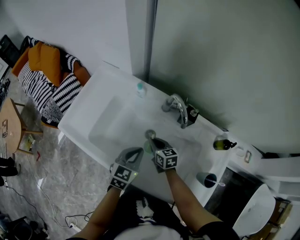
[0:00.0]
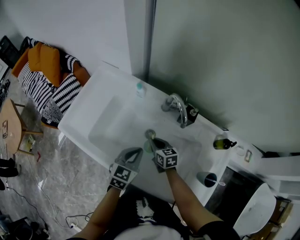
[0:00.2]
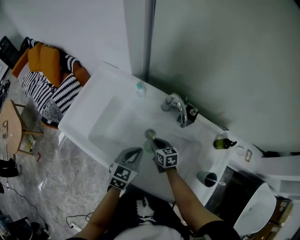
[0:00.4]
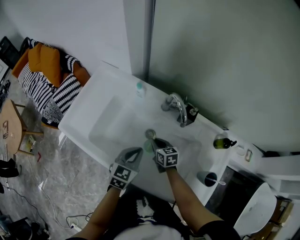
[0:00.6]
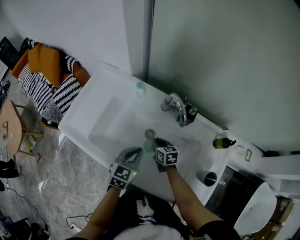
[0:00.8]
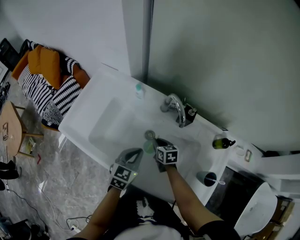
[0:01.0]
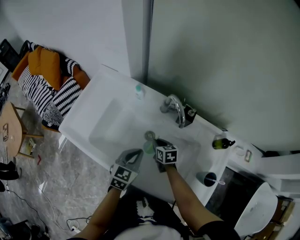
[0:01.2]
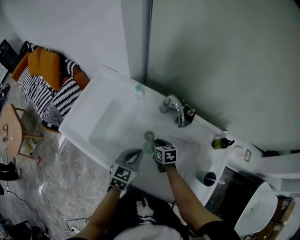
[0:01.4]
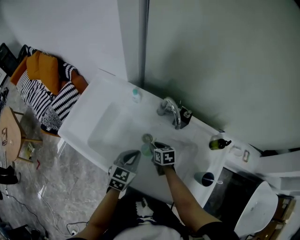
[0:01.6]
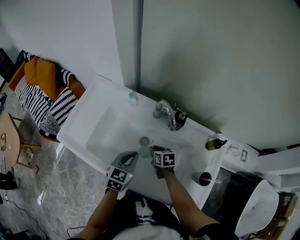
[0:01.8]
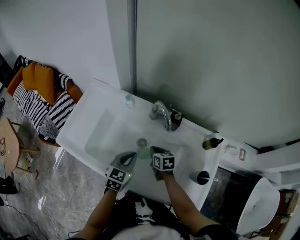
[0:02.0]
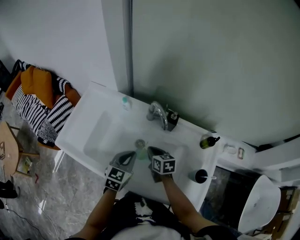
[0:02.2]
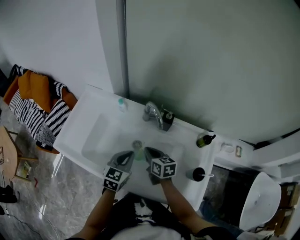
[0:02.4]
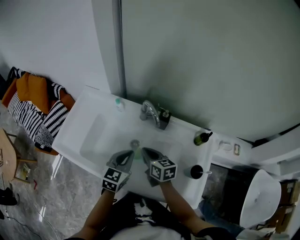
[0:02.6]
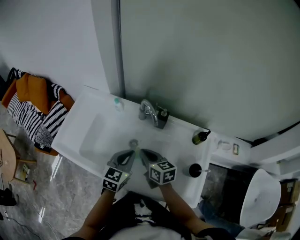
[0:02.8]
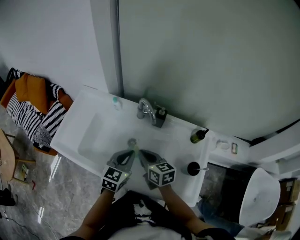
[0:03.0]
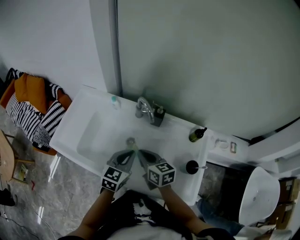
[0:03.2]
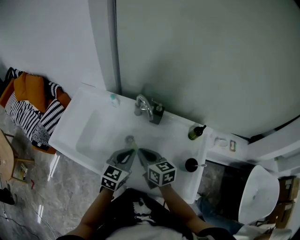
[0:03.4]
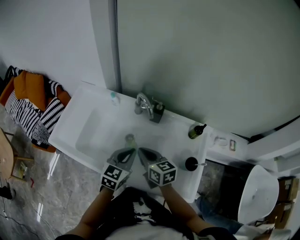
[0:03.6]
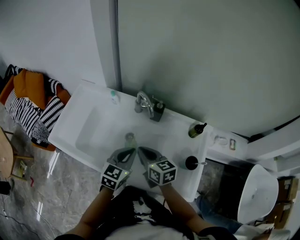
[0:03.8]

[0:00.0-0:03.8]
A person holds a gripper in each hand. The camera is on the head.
0:00.0 to 0:01.2: The grippers move only a little.
0:01.2 to 0:02.6: The left gripper shifts some 5 cm upward, while the right gripper shifts about 15 cm upward.
0:02.6 to 0:03.8: The left gripper moves roughly 5 cm. The right gripper shifts roughly 5 cm backward.

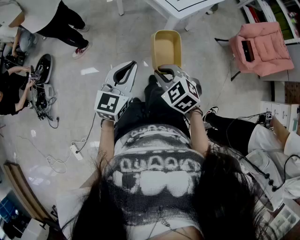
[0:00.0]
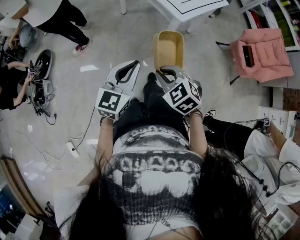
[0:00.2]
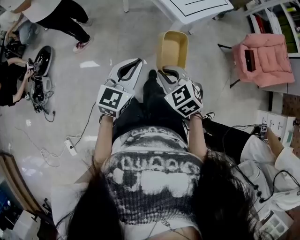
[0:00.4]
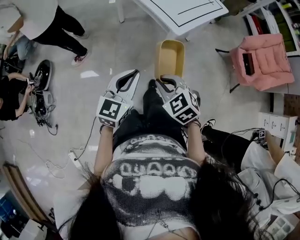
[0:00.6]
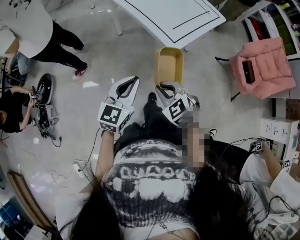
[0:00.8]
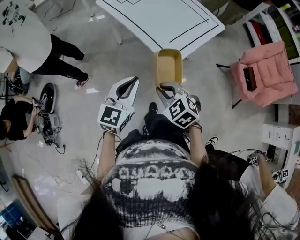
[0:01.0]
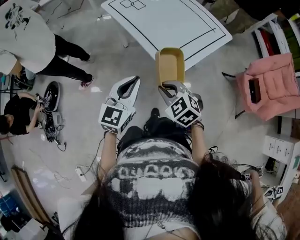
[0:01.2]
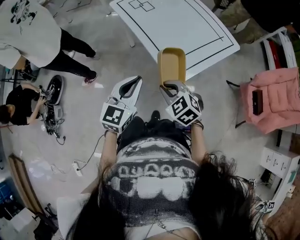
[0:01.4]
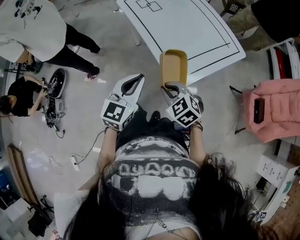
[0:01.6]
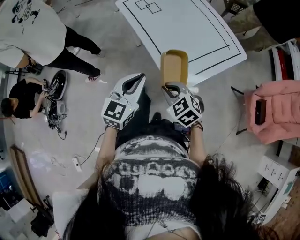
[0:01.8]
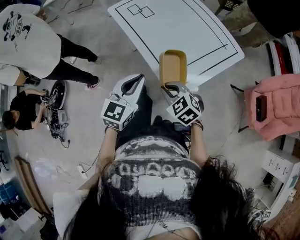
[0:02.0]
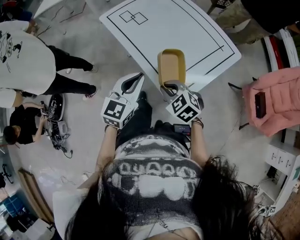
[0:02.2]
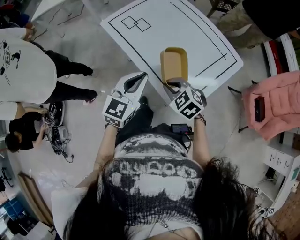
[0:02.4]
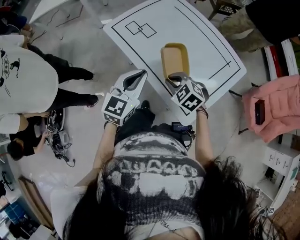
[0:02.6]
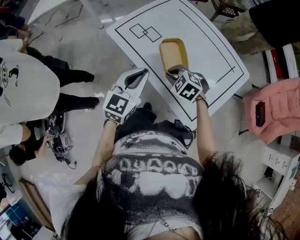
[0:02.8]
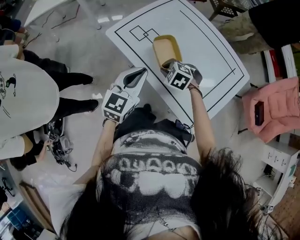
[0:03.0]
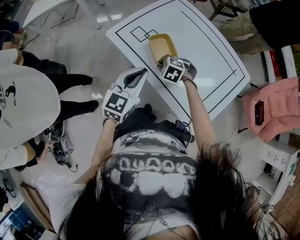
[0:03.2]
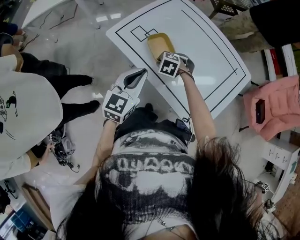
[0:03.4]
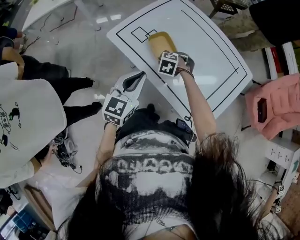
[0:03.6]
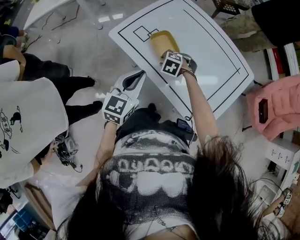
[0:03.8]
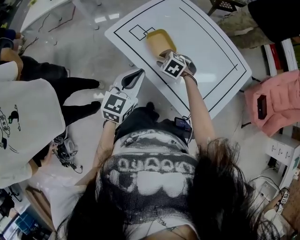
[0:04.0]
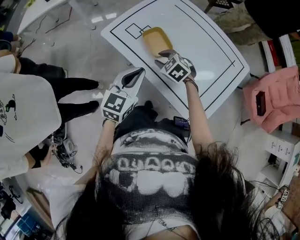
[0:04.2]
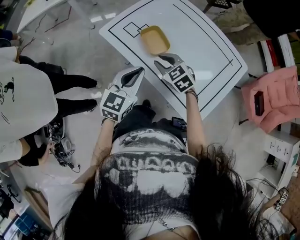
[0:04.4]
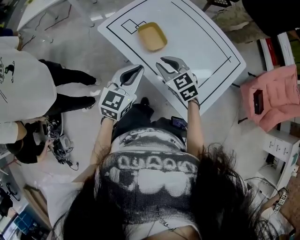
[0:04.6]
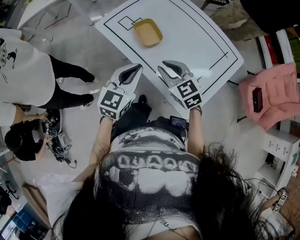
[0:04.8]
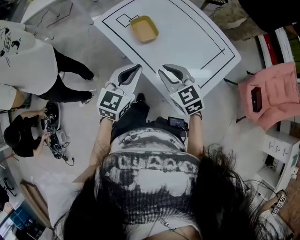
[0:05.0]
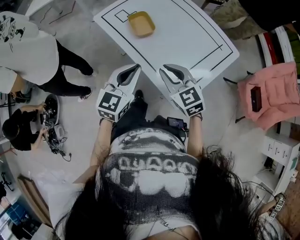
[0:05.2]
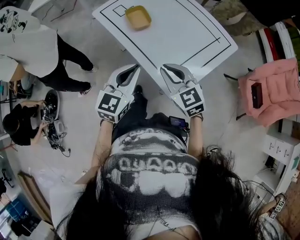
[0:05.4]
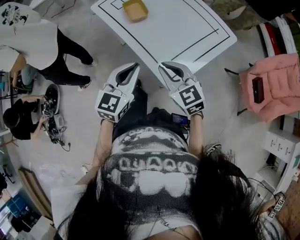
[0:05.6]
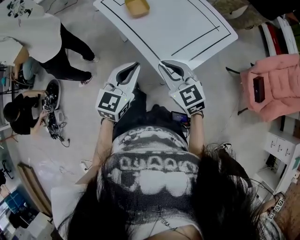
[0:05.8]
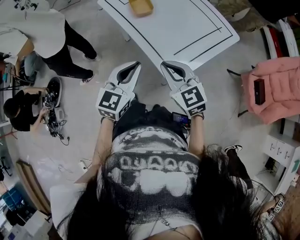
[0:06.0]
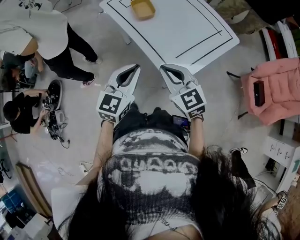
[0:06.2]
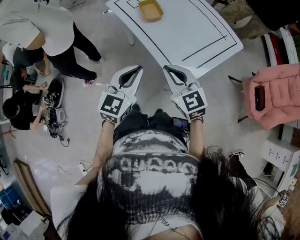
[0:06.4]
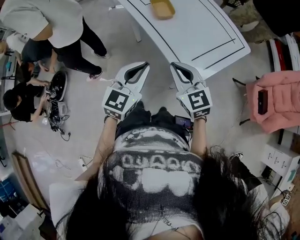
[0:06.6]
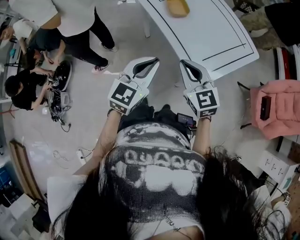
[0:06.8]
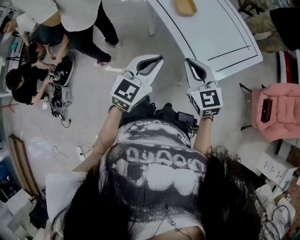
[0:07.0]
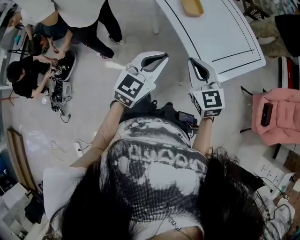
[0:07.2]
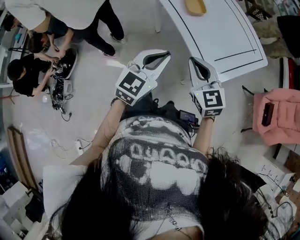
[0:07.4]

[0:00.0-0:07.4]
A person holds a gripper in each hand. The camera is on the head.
0:00.0 to 0:01.4: The two grippers travel together, forward and to the right, roughly 40 cm.
0:01.4 to 0:03.0: The grippers both shift forward by roughly 40 cm.
0:03.0 to 0:04.4: The right gripper changes its angle by some 30 degrees.
0:04.4 to 0:06.0: The two grippers go some 35 cm backward and to the right. The right gripper rotates some 20 degrees, and closes its fingers.
0:06.0 to 0:07.4: Both grippers travel together to the left, approximately 15 cm.

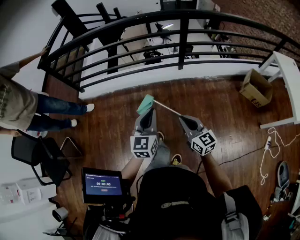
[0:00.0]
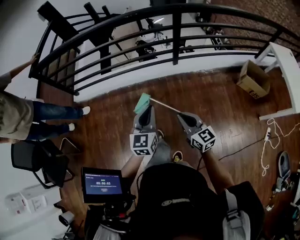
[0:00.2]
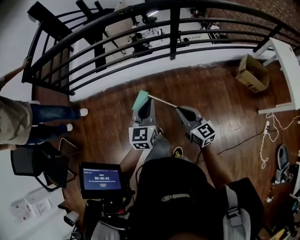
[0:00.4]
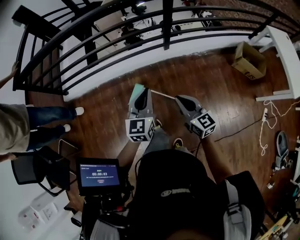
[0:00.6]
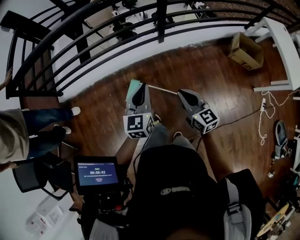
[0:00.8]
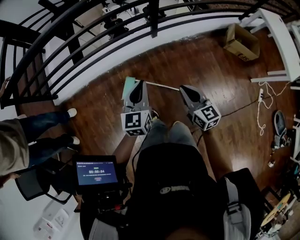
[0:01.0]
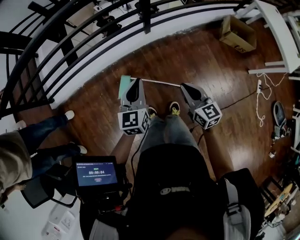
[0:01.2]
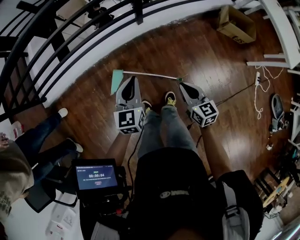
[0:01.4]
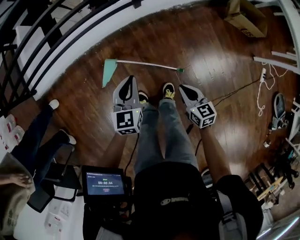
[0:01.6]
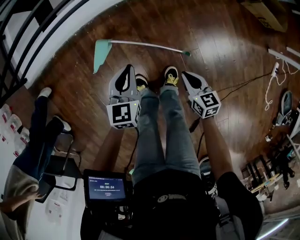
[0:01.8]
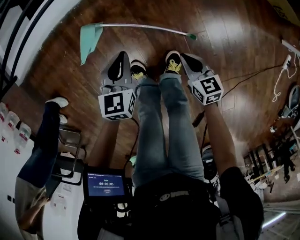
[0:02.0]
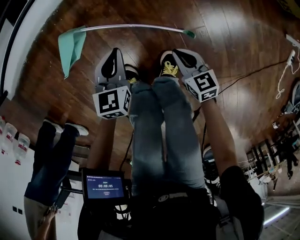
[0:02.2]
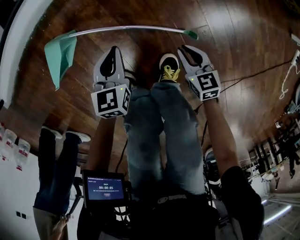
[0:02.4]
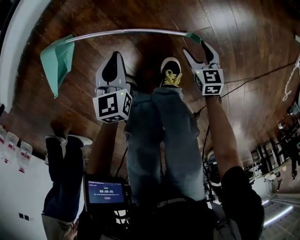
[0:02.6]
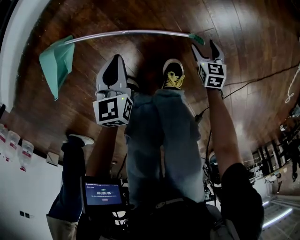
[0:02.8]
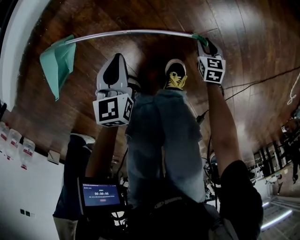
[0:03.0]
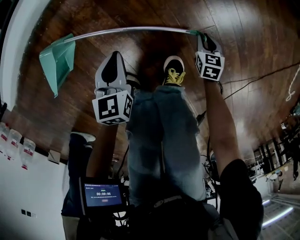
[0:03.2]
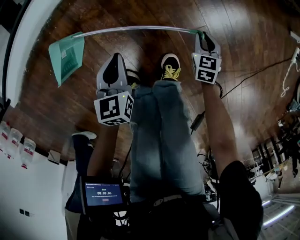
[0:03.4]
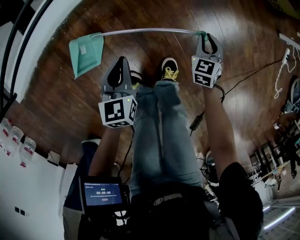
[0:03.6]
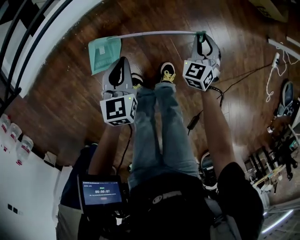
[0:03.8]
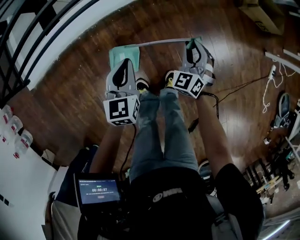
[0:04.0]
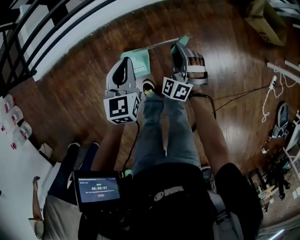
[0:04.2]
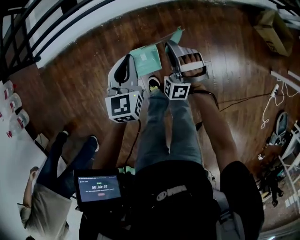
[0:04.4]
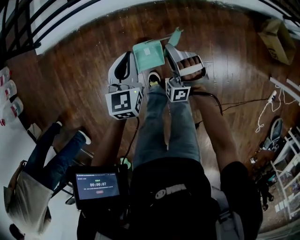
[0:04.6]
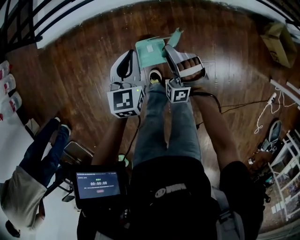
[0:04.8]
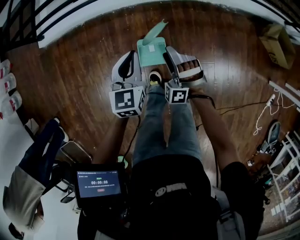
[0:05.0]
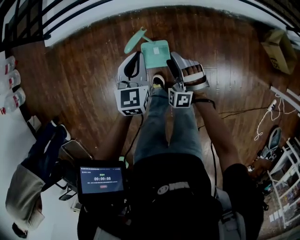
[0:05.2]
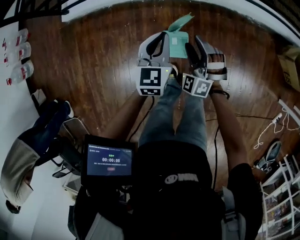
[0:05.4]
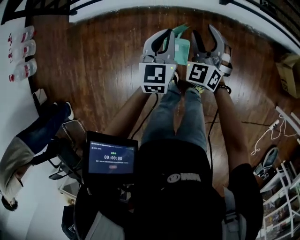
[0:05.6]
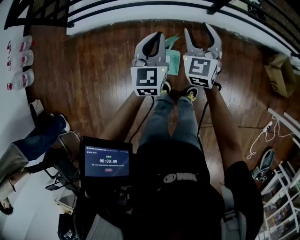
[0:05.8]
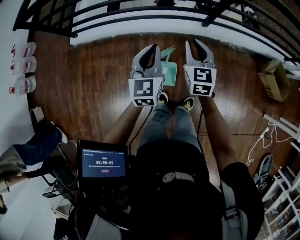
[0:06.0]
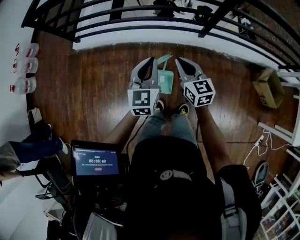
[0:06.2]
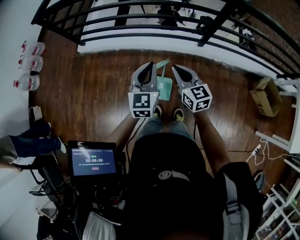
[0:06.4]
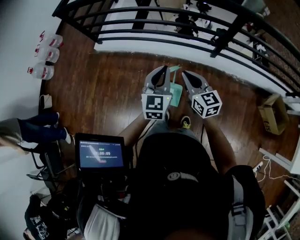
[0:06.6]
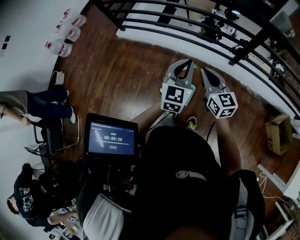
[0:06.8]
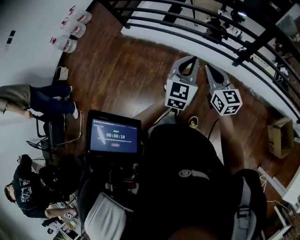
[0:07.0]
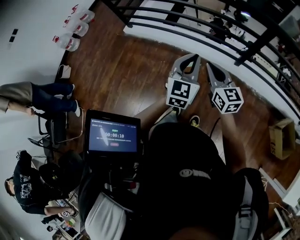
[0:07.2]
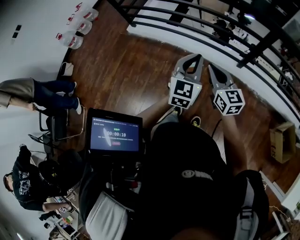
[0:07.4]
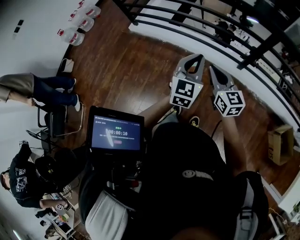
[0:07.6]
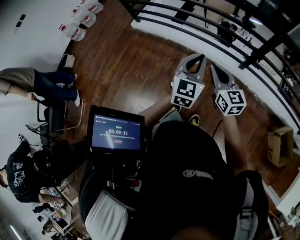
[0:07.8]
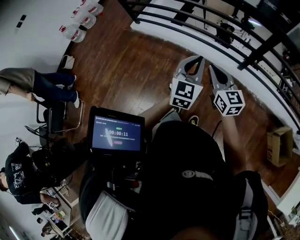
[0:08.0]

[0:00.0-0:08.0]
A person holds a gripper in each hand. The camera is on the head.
0:00.0 to 0:01.6: Both grippers travel together downward and forward, about 30 cm. The right gripper rotates roughly 30 degrees.
0:01.6 to 0:03.2: The two grippers go some 50 cm downward. The right gripper changes its angle by approximately 30 degrees, and opens, then closes once more.
0:03.2 to 0:04.8: Both grippers travel together upward, some 50 cm. The right gripper rolls counterclockwise, seen from behind, by roughly 100 degrees. Meanwhile the left gripper swivels roughly 30 degrees.
0:04.8 to 0:06.4: Both grippers travel together upward, about 25 cm. The right gripper twists roughly 80 degrees clockwise, seen from behind, and closes.
0:06.4 to 0:08.0: The left gripper is displaced to the right and upward by roughly 10 cm; the right gripper is displaced upward by some 5 cm.

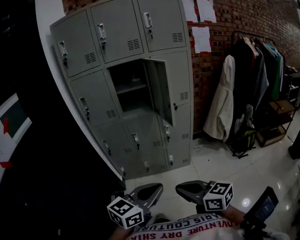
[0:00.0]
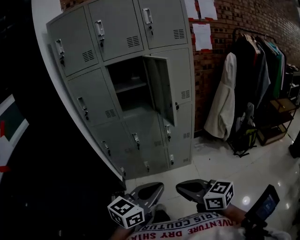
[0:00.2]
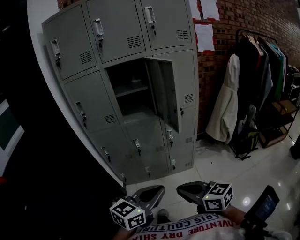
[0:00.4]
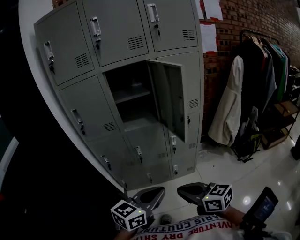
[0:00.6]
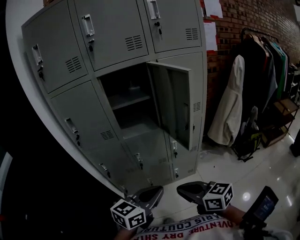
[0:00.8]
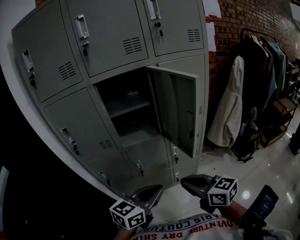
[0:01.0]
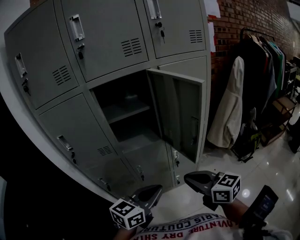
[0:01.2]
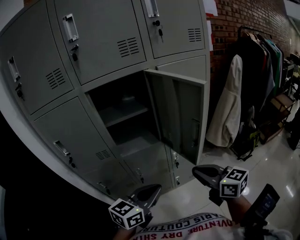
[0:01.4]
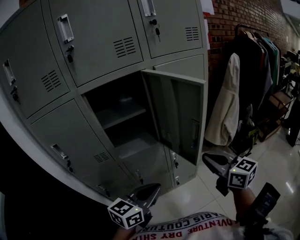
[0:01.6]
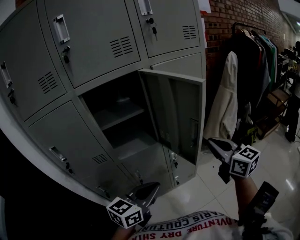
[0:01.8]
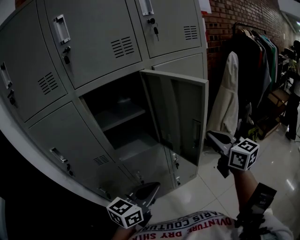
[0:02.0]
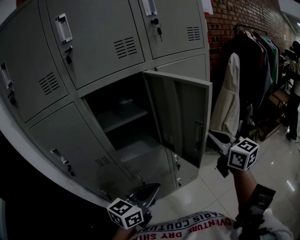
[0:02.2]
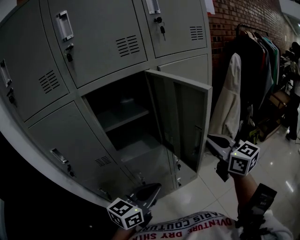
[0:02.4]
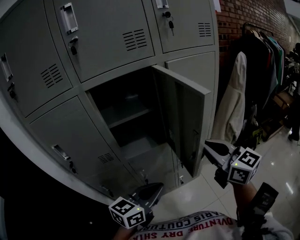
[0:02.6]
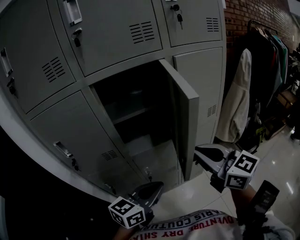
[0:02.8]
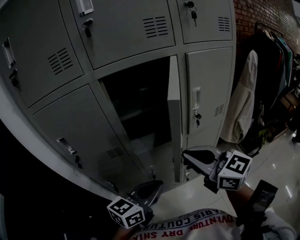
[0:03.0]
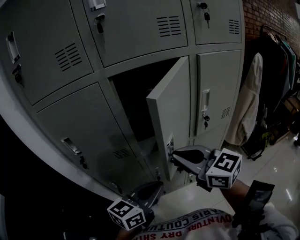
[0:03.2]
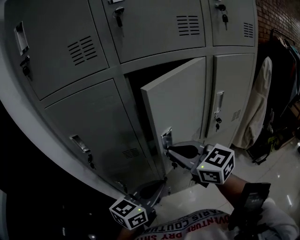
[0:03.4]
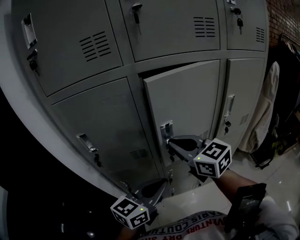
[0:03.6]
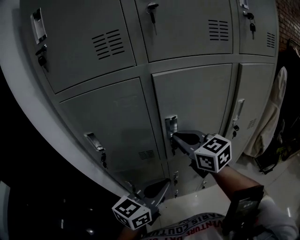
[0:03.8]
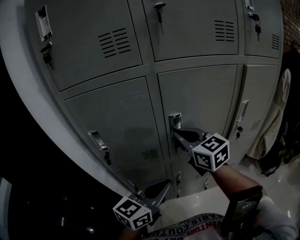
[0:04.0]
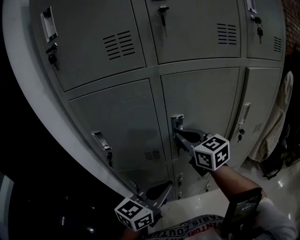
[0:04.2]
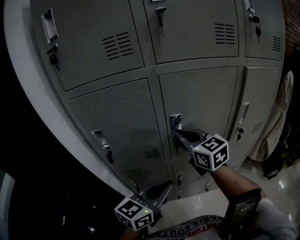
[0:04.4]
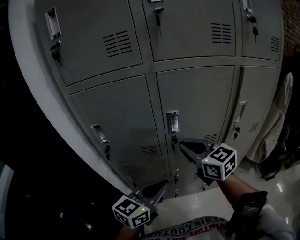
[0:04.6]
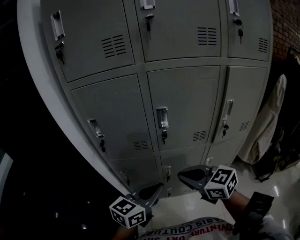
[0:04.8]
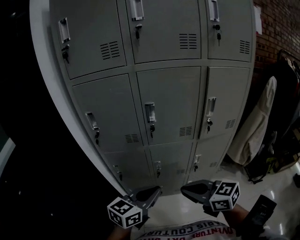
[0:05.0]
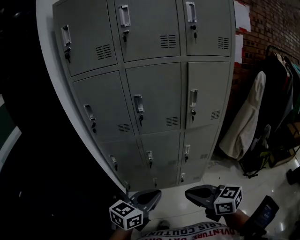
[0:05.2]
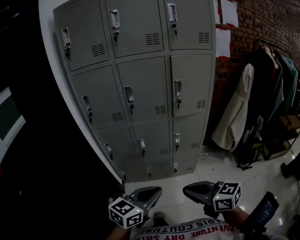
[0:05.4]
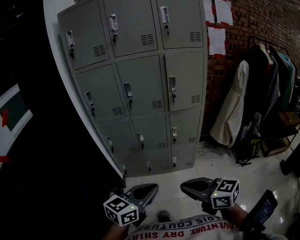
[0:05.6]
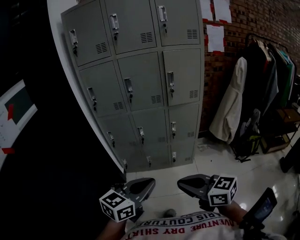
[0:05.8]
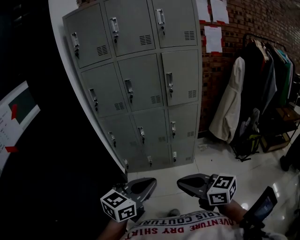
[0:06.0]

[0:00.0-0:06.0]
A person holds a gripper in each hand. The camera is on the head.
0:00.0 to 0:01.6: Both grippers travel together forward, about 40 cm. The right gripper changes its angle by some 30 degrees.
0:01.6 to 0:03.0: The left gripper shifts approximately 10 cm to the left, while the right gripper goes approximately 20 cm to the left.
0:03.0 to 0:04.4: The right gripper moves forward and to the left, about 25 cm. The left gripper shifts approximately 10 cm to the left.
0:04.4 to 0:06.0: The two grippers travel together, backward, approximately 60 cm. The right gripper rotates approximately 30 degrees.
